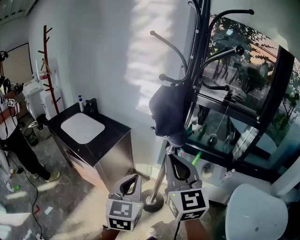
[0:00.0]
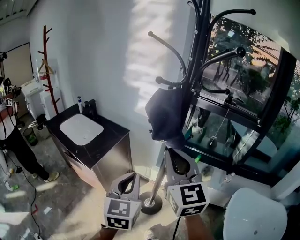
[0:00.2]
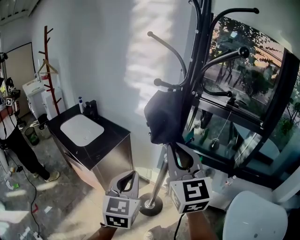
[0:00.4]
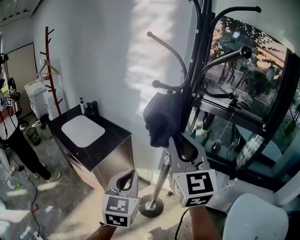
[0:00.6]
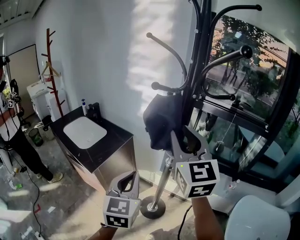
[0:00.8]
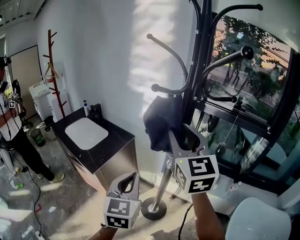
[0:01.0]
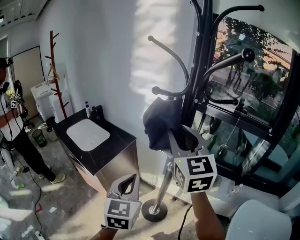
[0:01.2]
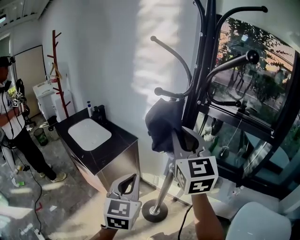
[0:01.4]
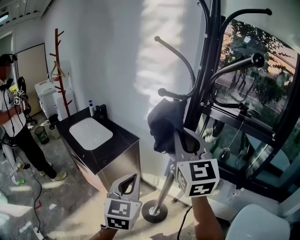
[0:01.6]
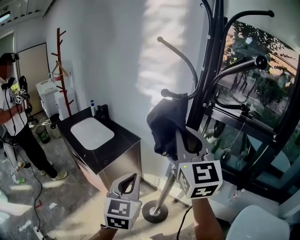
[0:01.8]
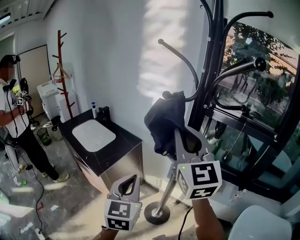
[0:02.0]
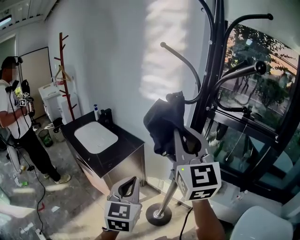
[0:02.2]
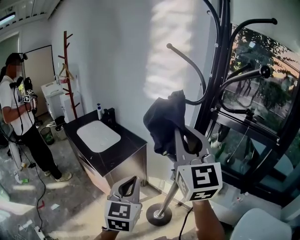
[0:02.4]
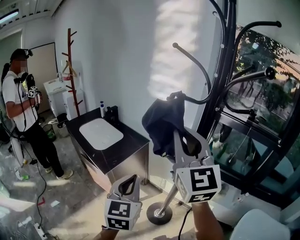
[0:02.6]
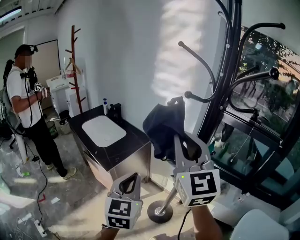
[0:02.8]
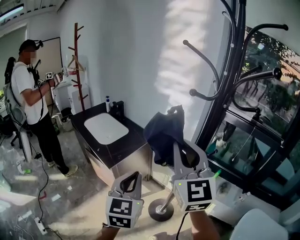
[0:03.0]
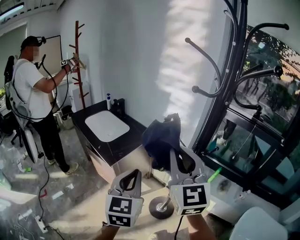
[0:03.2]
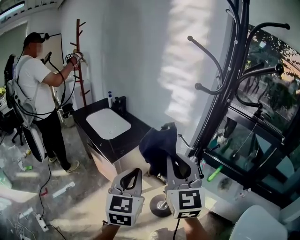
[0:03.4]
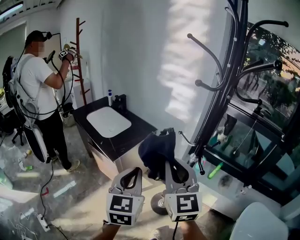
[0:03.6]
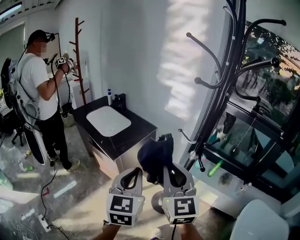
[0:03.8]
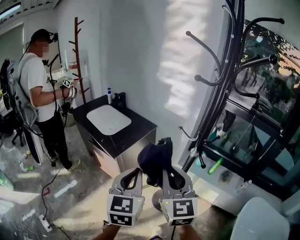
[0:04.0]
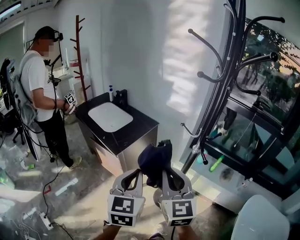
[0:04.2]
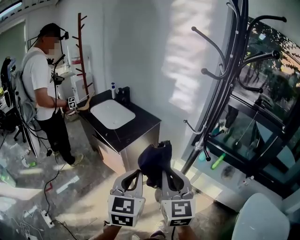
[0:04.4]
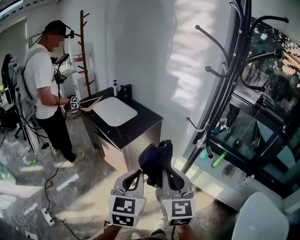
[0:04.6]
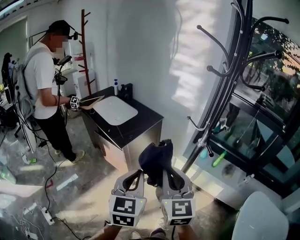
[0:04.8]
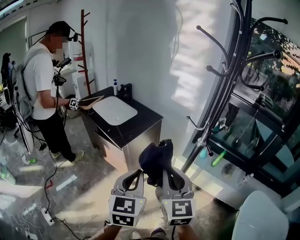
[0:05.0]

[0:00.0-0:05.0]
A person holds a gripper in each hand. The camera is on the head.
0:00.0 to 0:01.6: The left gripper travels forward by about 5 cm, while the right gripper goes about 15 cm forward and upward, and opens and closes again.
0:01.6 to 0:03.4: The left gripper heads to the left, covering about 10 cm; the right gripper shifts some 15 cm to the left, backward and downward.
0:03.4 to 0:05.0: The left gripper heads backward, covering some 10 cm, while the right gripper is displaced downward and backward by approximately 15 cm.

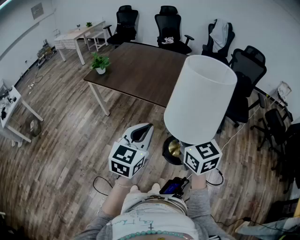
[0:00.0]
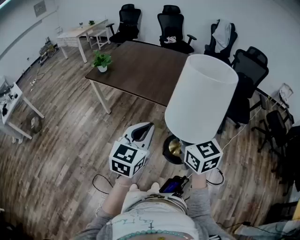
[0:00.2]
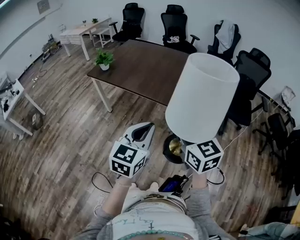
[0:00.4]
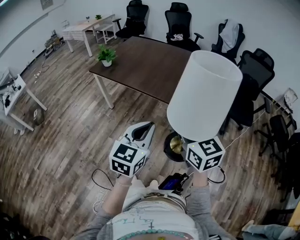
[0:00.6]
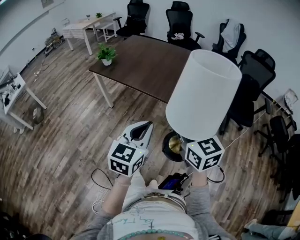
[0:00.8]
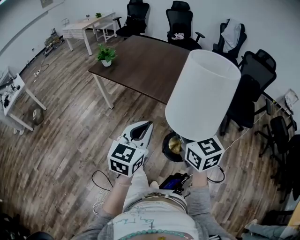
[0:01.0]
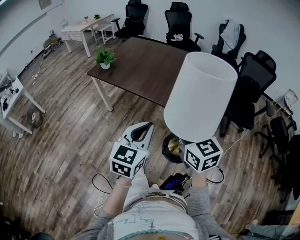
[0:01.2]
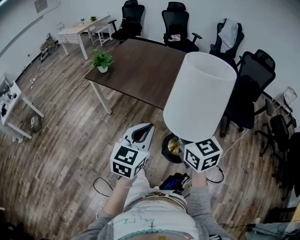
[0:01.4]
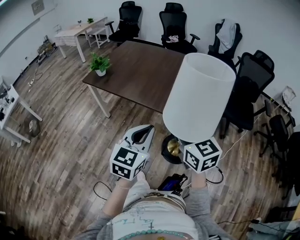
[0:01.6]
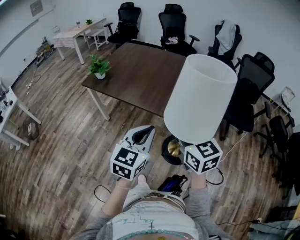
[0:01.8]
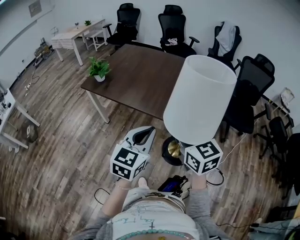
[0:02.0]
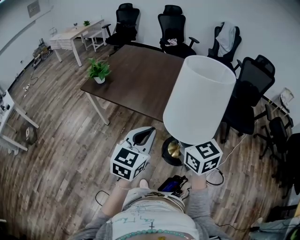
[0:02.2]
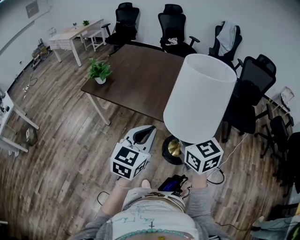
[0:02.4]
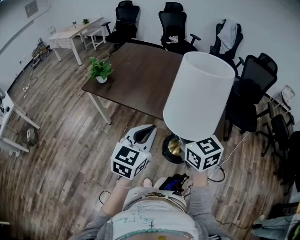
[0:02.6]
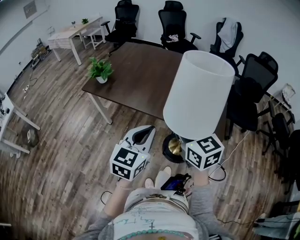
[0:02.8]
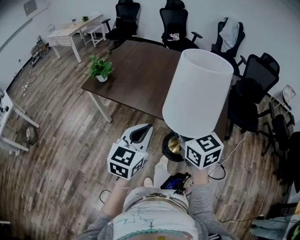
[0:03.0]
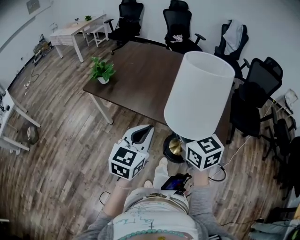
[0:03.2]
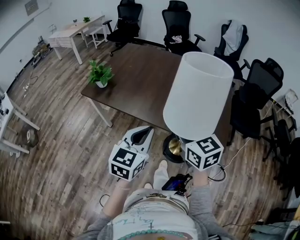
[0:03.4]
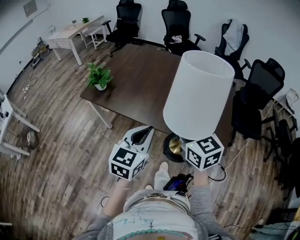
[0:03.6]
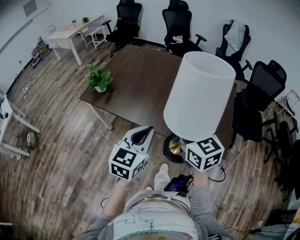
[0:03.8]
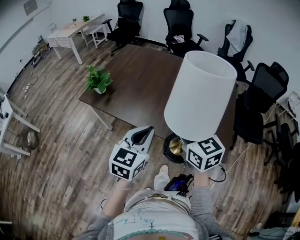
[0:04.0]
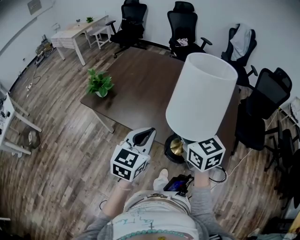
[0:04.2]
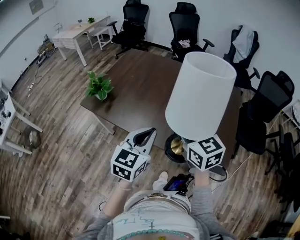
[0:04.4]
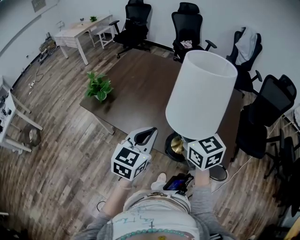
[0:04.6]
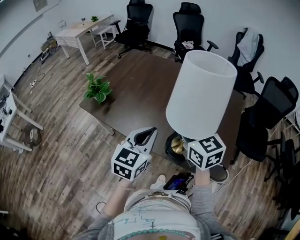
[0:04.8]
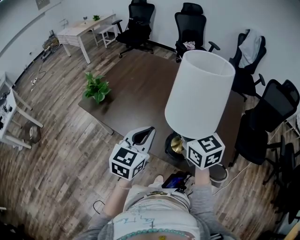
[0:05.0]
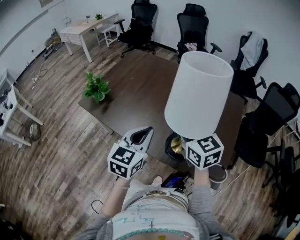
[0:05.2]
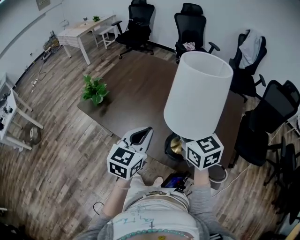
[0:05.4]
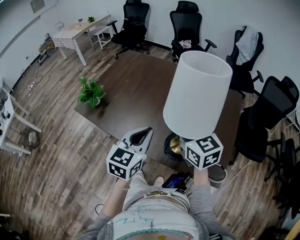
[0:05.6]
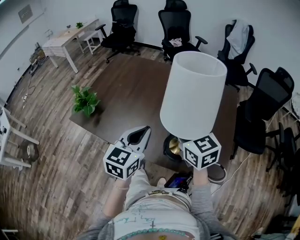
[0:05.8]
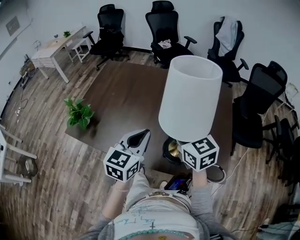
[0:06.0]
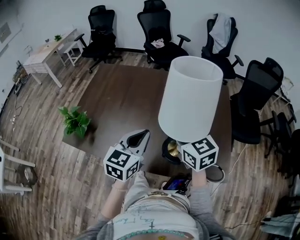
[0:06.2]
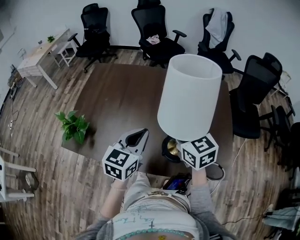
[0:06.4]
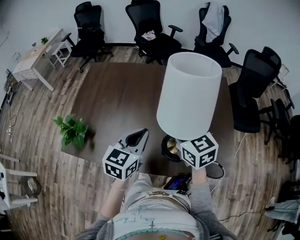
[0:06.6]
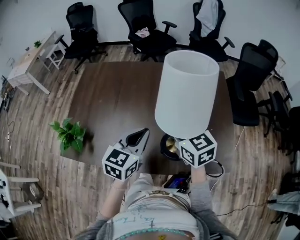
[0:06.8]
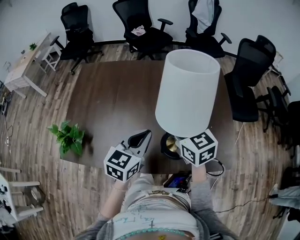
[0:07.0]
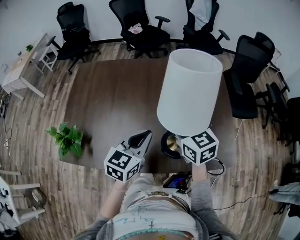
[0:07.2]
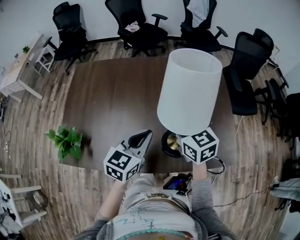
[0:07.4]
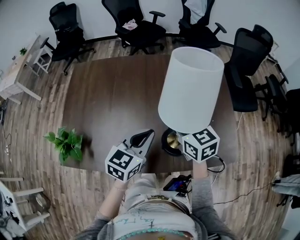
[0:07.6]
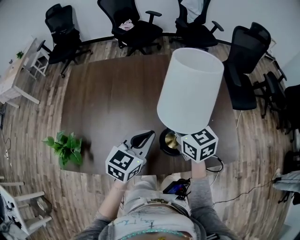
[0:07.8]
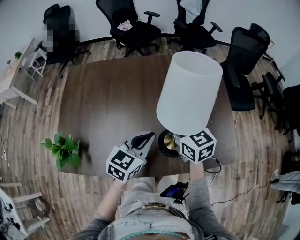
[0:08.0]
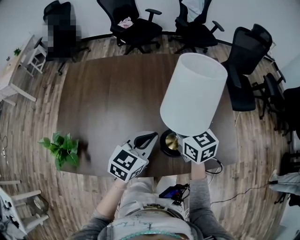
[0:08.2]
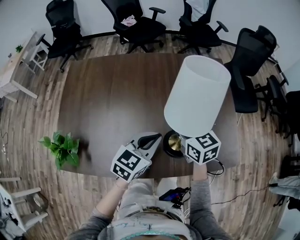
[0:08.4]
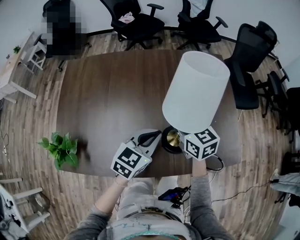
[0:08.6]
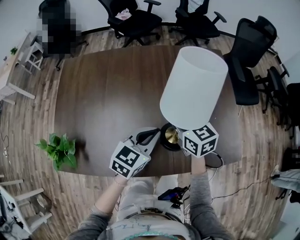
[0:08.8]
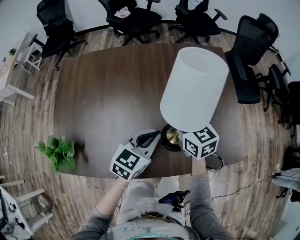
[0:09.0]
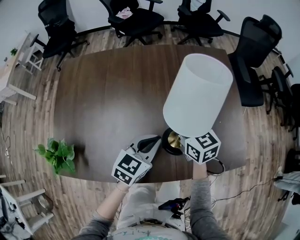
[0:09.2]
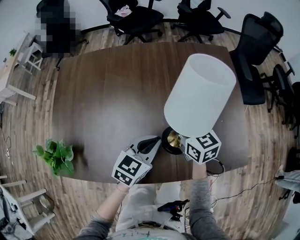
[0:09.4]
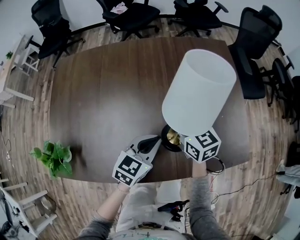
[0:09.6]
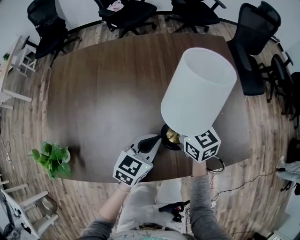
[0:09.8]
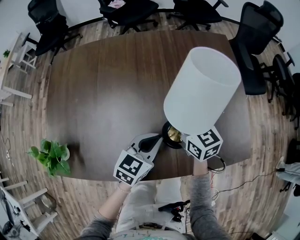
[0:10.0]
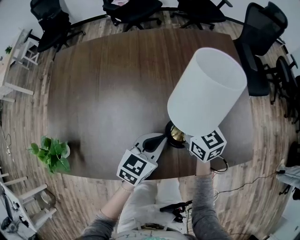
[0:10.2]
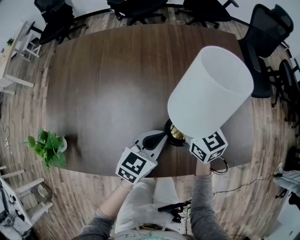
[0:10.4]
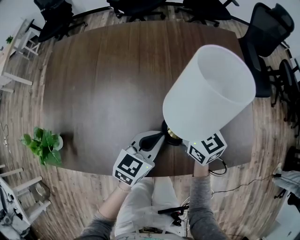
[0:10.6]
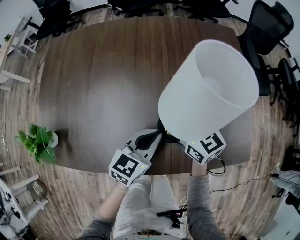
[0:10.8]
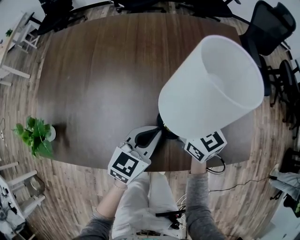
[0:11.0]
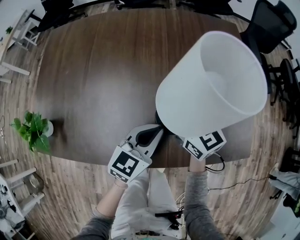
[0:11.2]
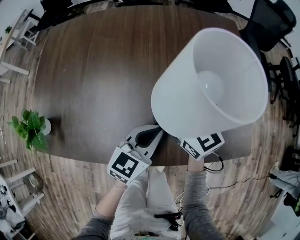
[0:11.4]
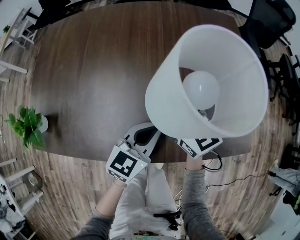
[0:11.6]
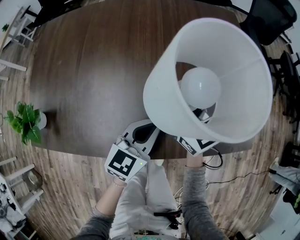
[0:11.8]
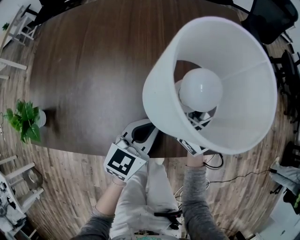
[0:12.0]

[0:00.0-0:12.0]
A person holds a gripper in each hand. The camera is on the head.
0:00.0 to 0:01.6: The two grippers go about 10 cm forward.
0:01.6 to 0:03.0: Both grippers travel together forward and to the left, roughly 15 cm.
0:03.0 to 0:04.4: Both grippers move forward, approximately 20 cm.
0:04.4 to 0:06.0: The grippers both shift forward by approximately 15 cm.
0:06.0 to 0:07.6: The two grippers go roughly 10 cm forward and downward. The left gripper swivels some 30 degrees.
0:07.6 to 0:09.0: The left gripper moves downward, some 10 cm, while the right gripper is displaced downward and forward by about 10 cm.
0:09.0 to 0:10.4: Both grippers move downward, roughly 5 cm.
0:10.4 to 0:12.0: Both grippers move backward, some 5 cm.

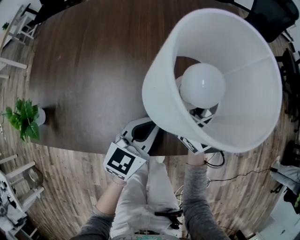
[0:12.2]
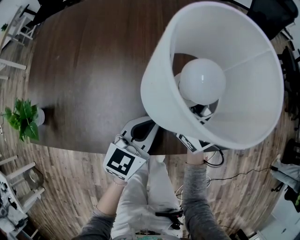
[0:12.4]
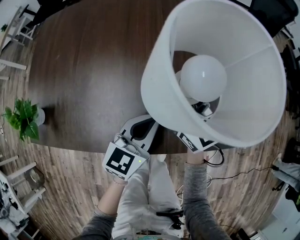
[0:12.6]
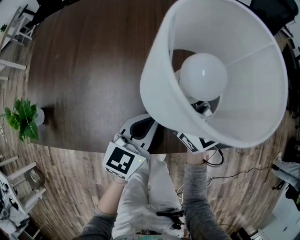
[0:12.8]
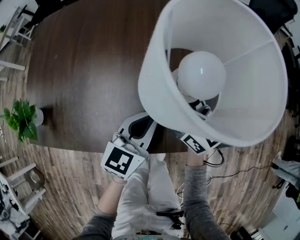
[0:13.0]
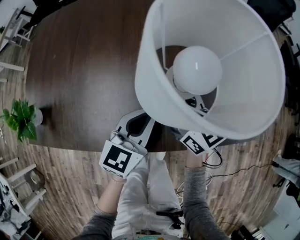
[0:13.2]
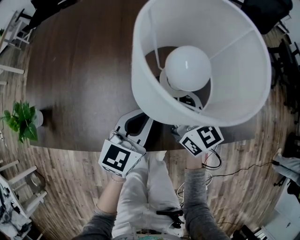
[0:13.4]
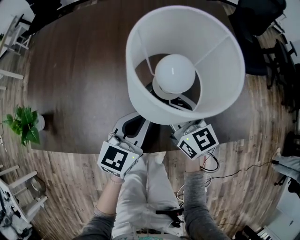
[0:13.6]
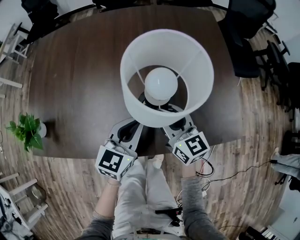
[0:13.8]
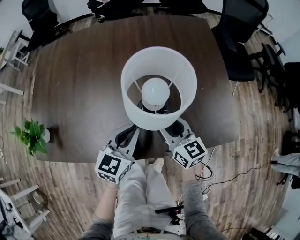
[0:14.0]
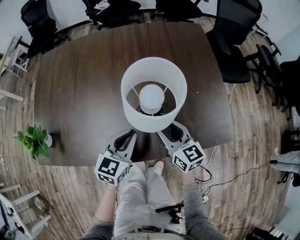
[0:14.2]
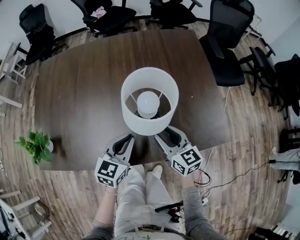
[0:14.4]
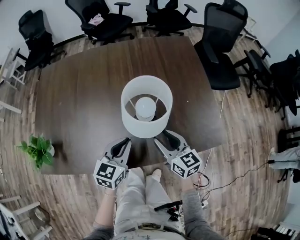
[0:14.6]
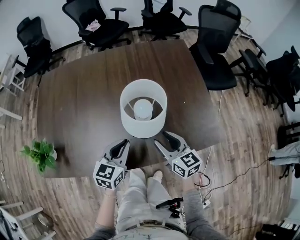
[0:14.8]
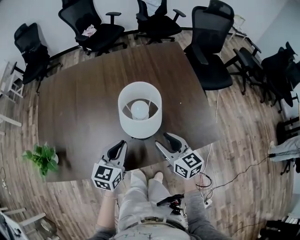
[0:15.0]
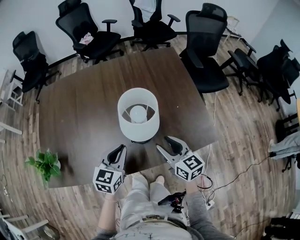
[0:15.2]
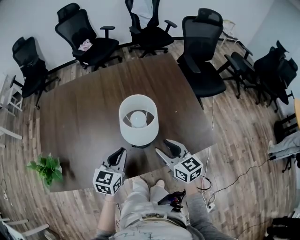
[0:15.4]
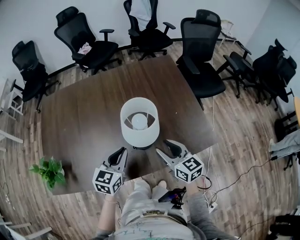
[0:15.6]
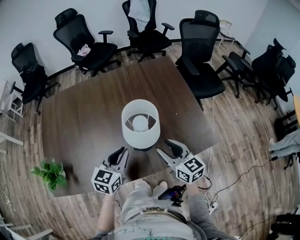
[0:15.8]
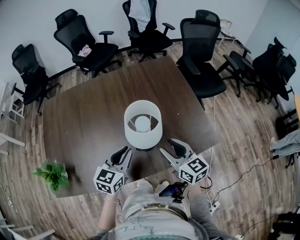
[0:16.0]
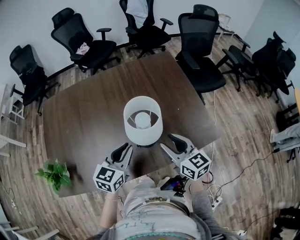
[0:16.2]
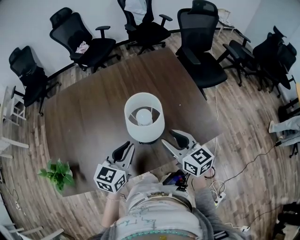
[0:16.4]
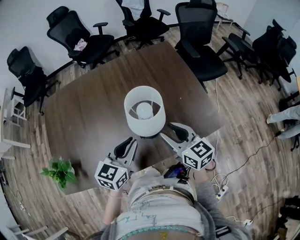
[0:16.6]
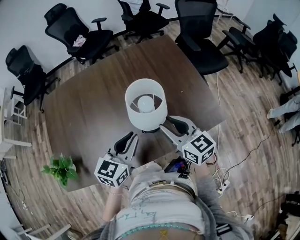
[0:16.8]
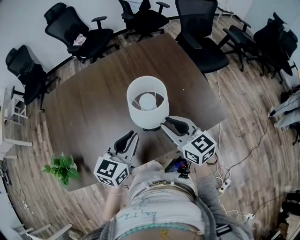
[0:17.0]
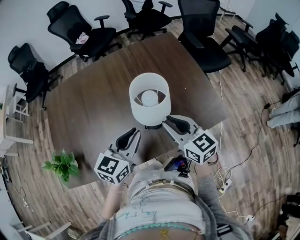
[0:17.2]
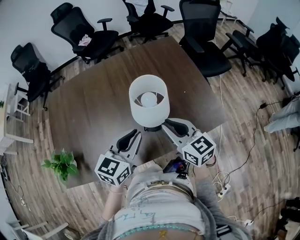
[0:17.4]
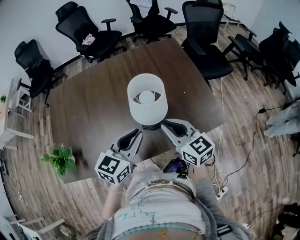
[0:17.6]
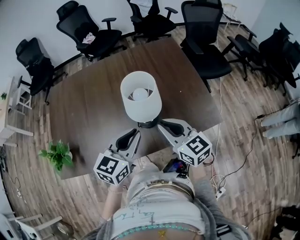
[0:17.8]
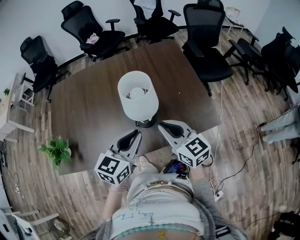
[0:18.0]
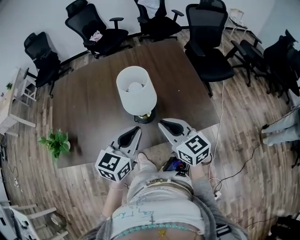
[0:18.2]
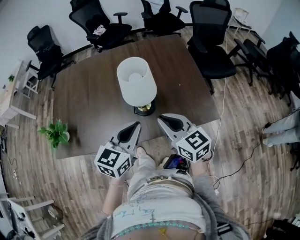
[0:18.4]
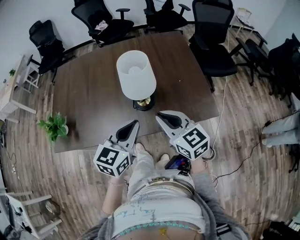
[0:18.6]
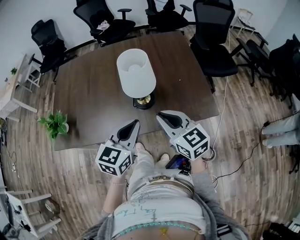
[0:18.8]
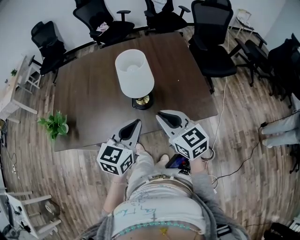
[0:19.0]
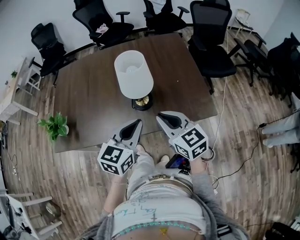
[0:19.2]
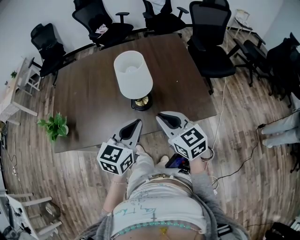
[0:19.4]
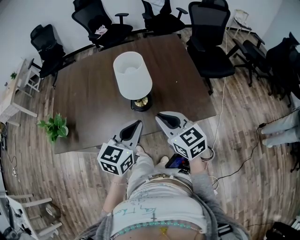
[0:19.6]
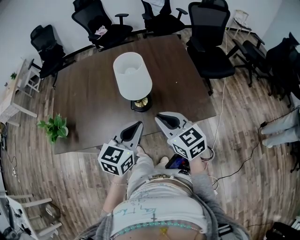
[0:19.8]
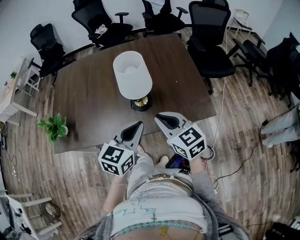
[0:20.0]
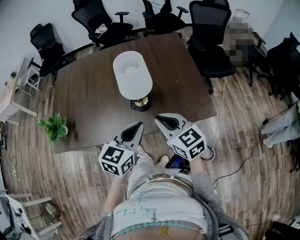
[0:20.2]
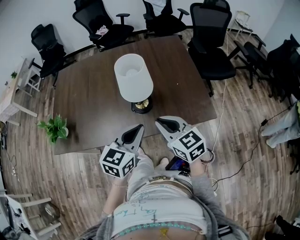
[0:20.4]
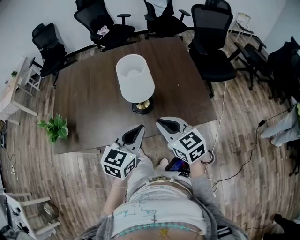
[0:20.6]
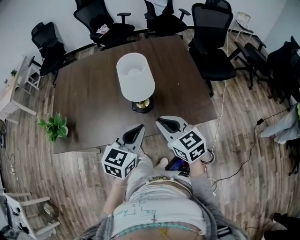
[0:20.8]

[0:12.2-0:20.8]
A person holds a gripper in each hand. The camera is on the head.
0:12.2 to 0:13.6: The right gripper shifts approximately 5 cm to the right, and opens up.
0:13.6 to 0:15.0: The right gripper travels backward, upward and to the right by some 10 cm, while the left gripper travels upward by some 5 cm.
0:15.0 to 0:16.6: Both grippers move upward, approximately 10 cm.
0:16.6 to 0:18.0: The left gripper shifts approximately 10 cm to the right and backward. The right gripper shifts approximately 5 cm backward, and closes up.
0:18.0 to 0:19.4: The two grippers go approximately 5 cm backward.
0:19.4 to 0:20.8: The grippers make only small movements.
